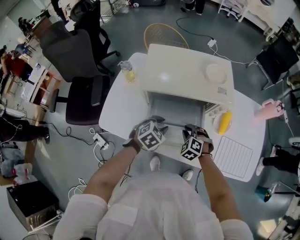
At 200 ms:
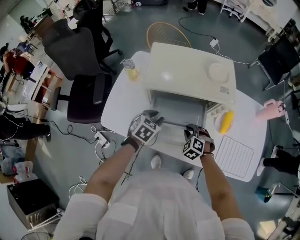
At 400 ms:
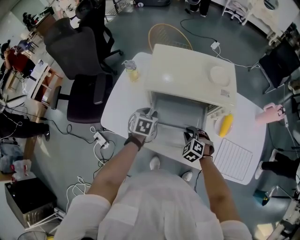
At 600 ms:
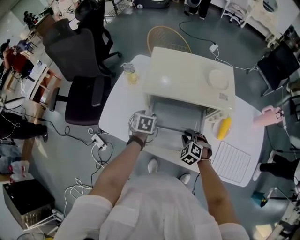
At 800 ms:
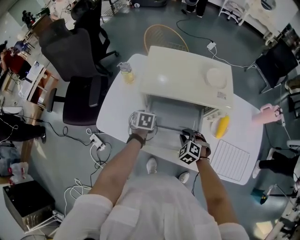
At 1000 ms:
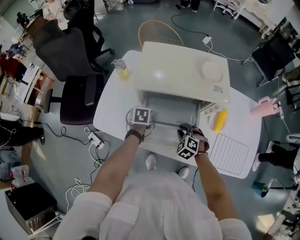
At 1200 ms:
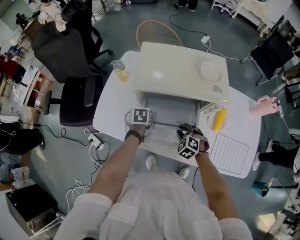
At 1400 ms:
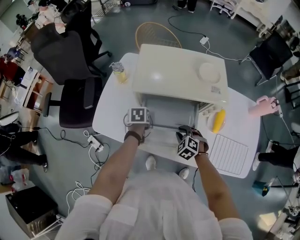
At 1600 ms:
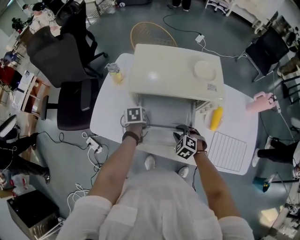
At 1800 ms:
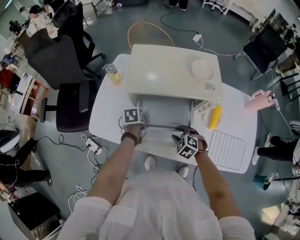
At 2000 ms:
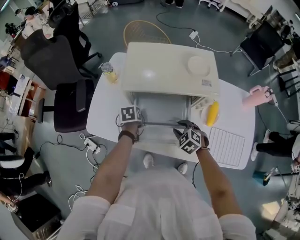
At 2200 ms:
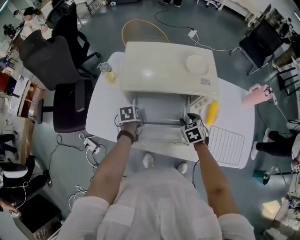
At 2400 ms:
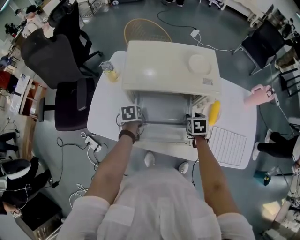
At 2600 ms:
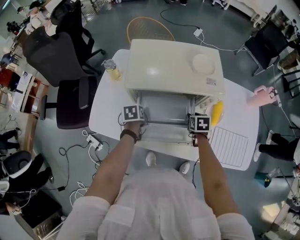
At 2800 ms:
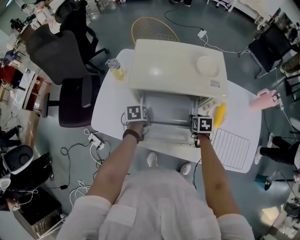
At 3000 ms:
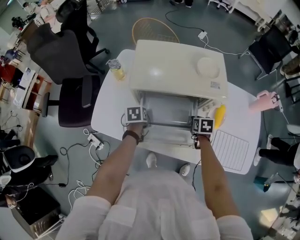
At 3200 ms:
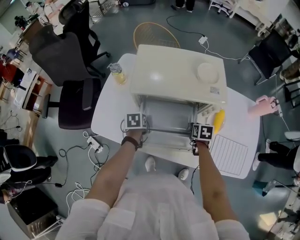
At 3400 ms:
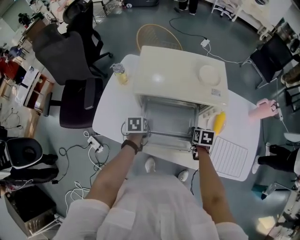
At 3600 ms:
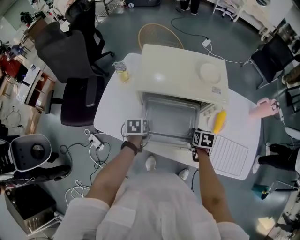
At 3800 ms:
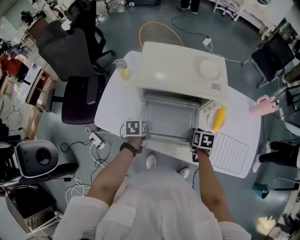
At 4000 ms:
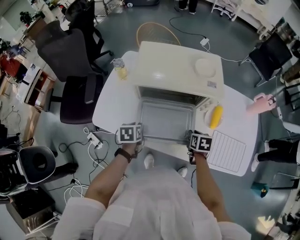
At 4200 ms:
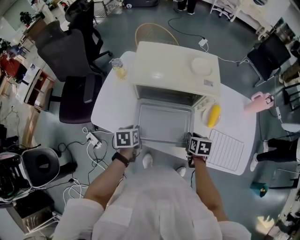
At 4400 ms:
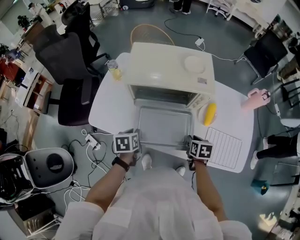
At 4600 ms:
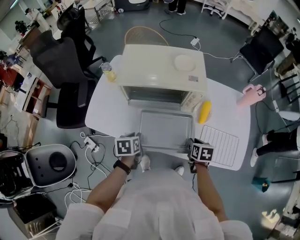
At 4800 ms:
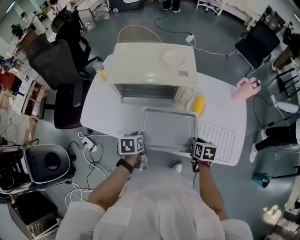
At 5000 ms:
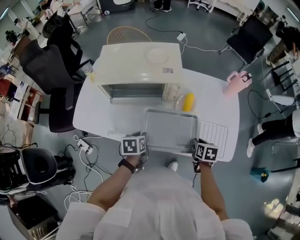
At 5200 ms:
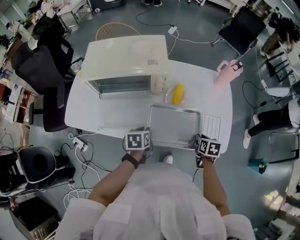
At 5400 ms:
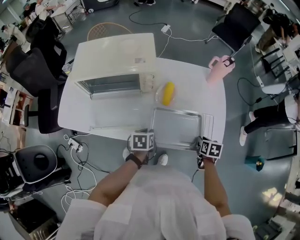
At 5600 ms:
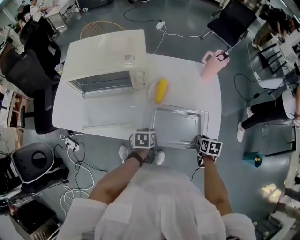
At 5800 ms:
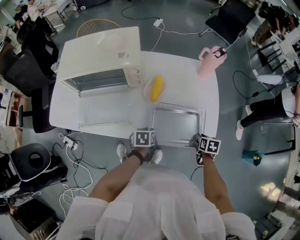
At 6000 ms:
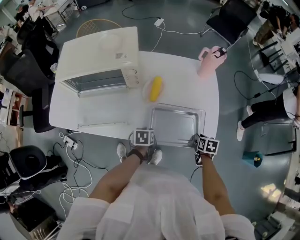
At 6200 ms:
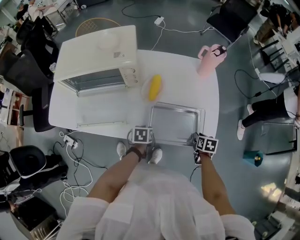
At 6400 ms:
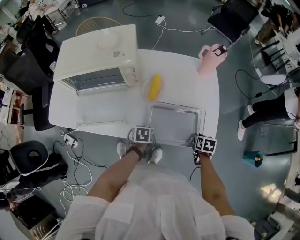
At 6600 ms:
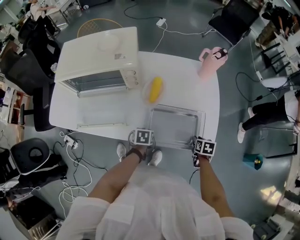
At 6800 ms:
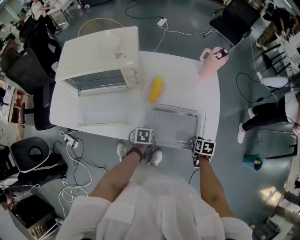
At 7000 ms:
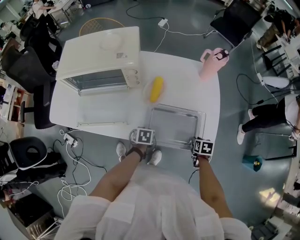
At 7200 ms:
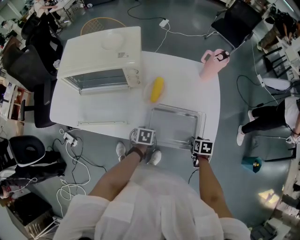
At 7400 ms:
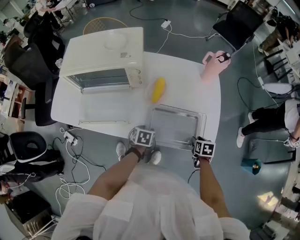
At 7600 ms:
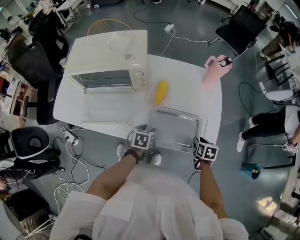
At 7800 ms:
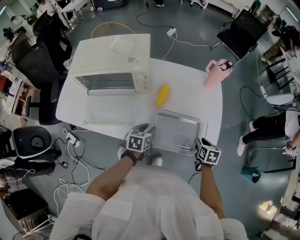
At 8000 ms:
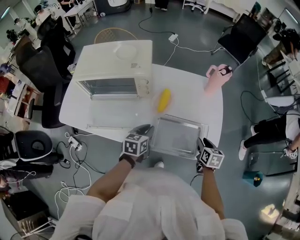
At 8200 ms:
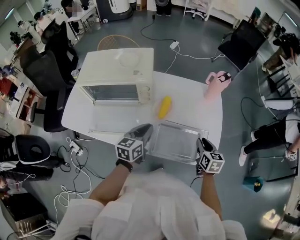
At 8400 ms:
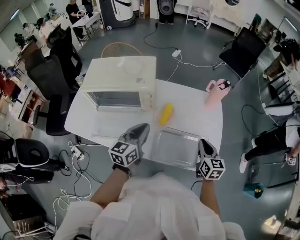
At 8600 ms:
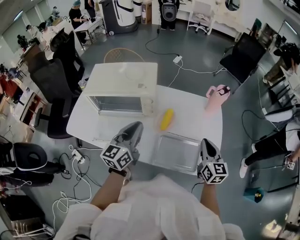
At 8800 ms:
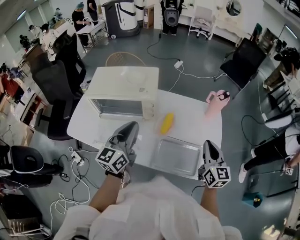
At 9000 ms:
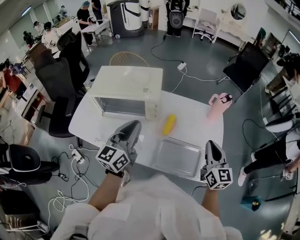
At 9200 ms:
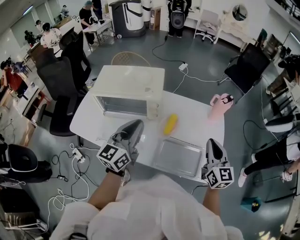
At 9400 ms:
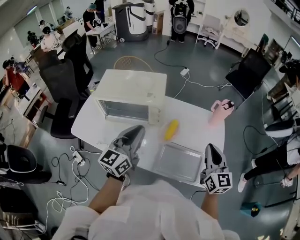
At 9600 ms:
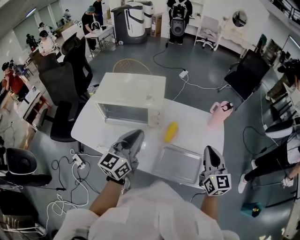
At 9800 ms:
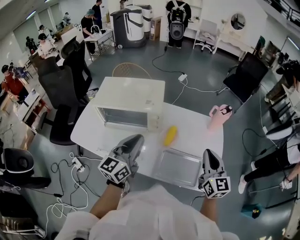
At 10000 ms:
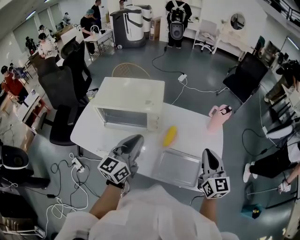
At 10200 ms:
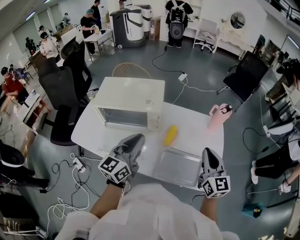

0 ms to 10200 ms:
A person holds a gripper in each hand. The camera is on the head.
0 ms to 1400 ms: The left gripper is displaced to the left, forward and downward by about 15 cm, and rotates around the line of its fingers by roughly 60 degrees, counterclockwise from behind.
1400 ms to 3000 ms: The right gripper moves to the right and forward, approximately 15 cm, and rotates around the line of its fingers by roughly 60 degrees, clockwise from behind.
3000 ms to 4400 ms: The right gripper moves backward, roughly 15 cm. Meanwhile the left gripper goes roughly 15 cm backward and upward.
4400 ms to 5800 ms: Both grippers move to the right, approximately 40 cm.
5800 ms to 7200 ms: The left gripper opens.
7200 ms to 8800 ms: Both grippers travel together upward, some 35 cm. The left gripper points its fingers approximately 70 degrees further upward, and closes its fingers; the right gripper angles its fingers upward, by approximately 60 degrees, and closes its fingers.
8800 ms to 10200 ms: The right gripper is displaced upward by some 5 cm.

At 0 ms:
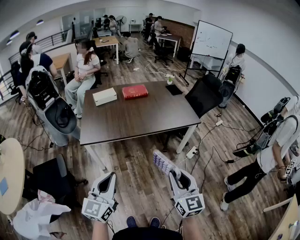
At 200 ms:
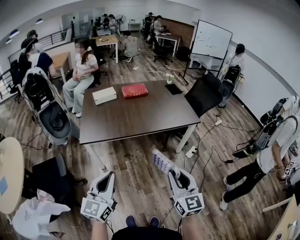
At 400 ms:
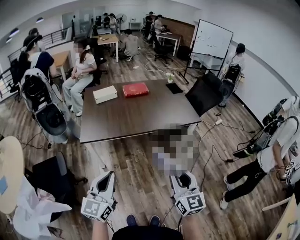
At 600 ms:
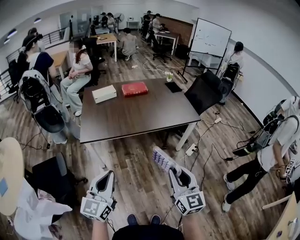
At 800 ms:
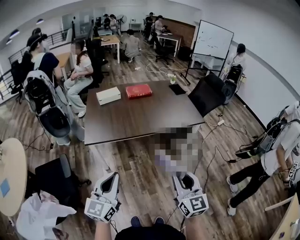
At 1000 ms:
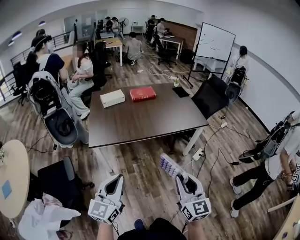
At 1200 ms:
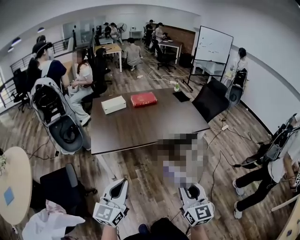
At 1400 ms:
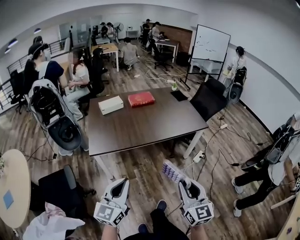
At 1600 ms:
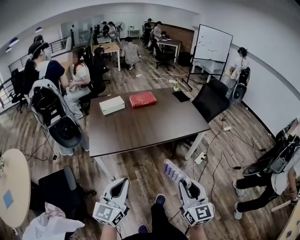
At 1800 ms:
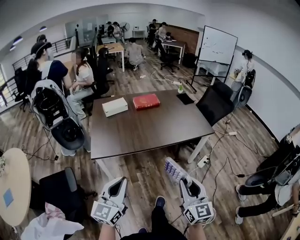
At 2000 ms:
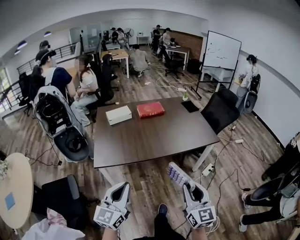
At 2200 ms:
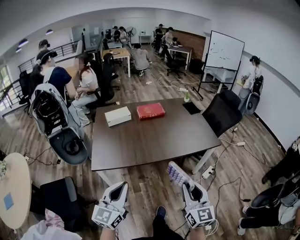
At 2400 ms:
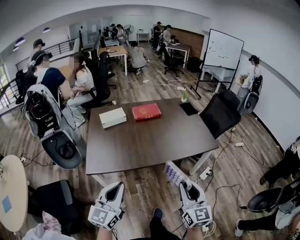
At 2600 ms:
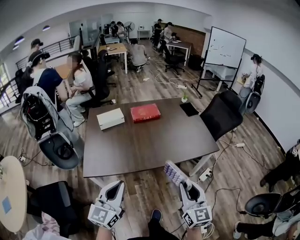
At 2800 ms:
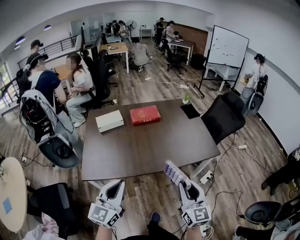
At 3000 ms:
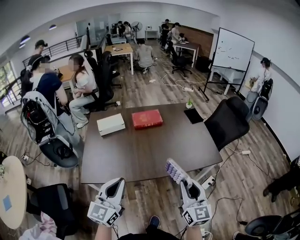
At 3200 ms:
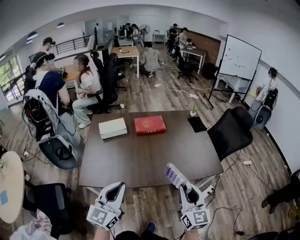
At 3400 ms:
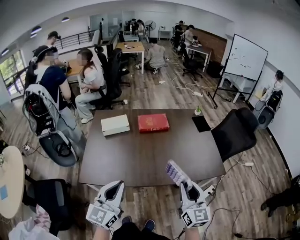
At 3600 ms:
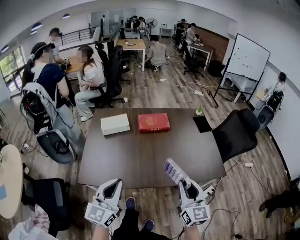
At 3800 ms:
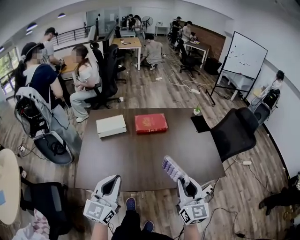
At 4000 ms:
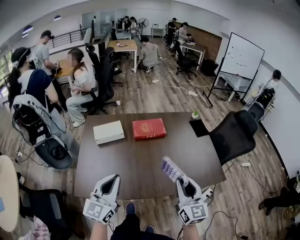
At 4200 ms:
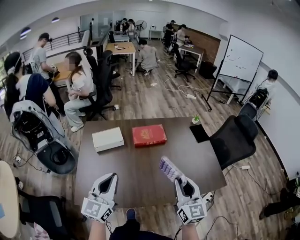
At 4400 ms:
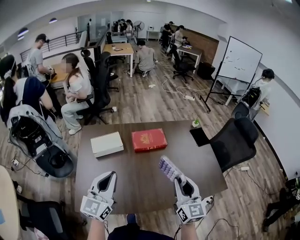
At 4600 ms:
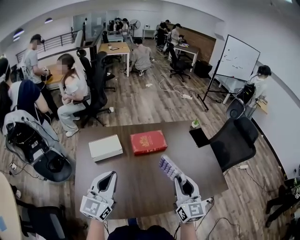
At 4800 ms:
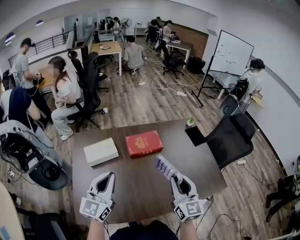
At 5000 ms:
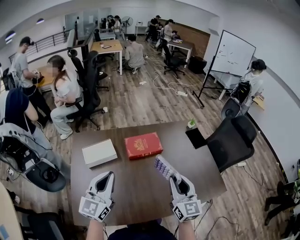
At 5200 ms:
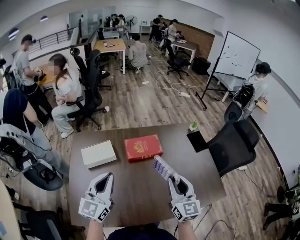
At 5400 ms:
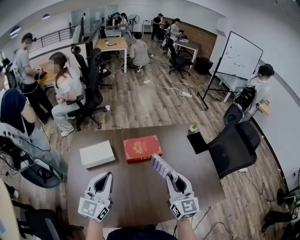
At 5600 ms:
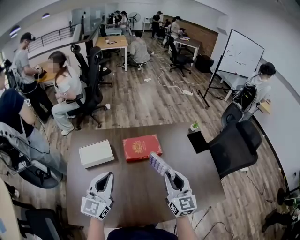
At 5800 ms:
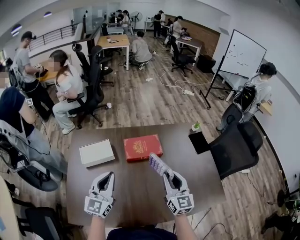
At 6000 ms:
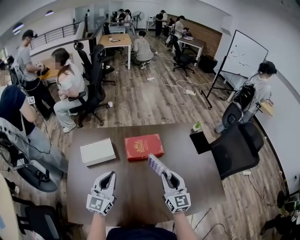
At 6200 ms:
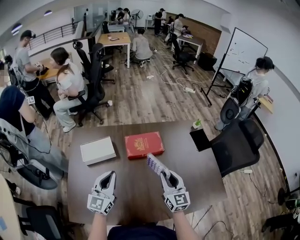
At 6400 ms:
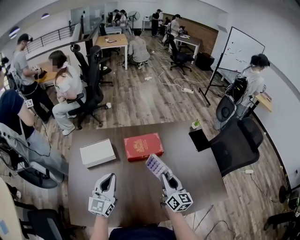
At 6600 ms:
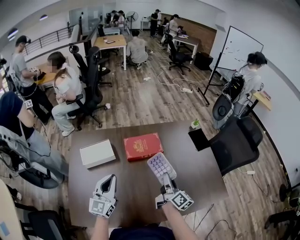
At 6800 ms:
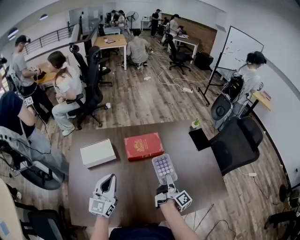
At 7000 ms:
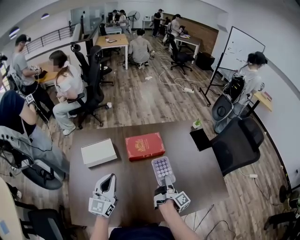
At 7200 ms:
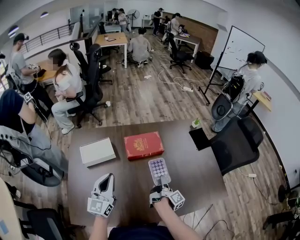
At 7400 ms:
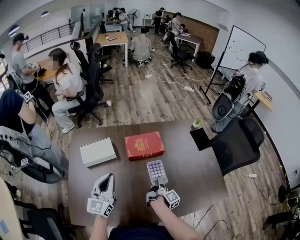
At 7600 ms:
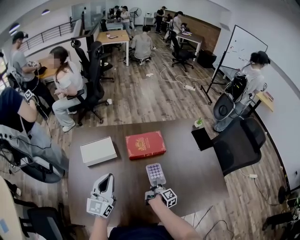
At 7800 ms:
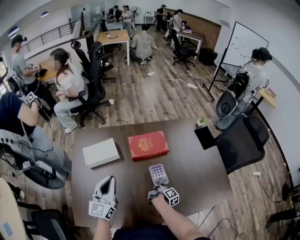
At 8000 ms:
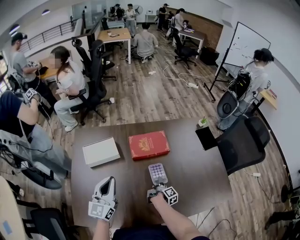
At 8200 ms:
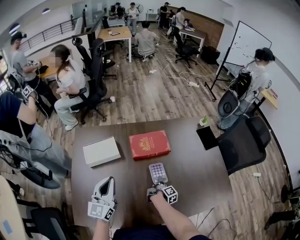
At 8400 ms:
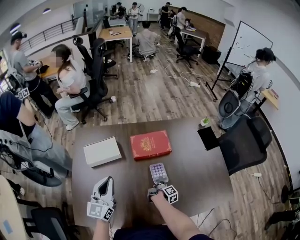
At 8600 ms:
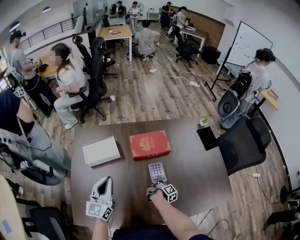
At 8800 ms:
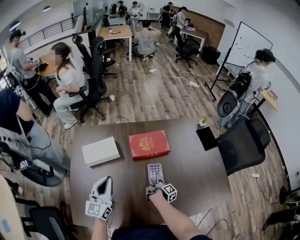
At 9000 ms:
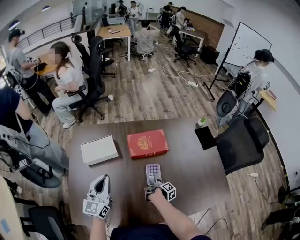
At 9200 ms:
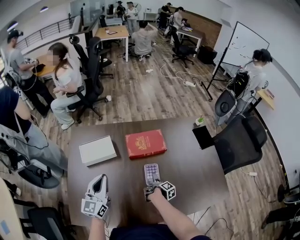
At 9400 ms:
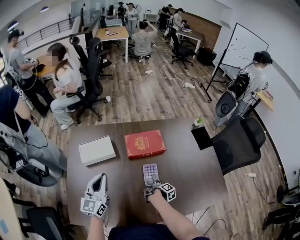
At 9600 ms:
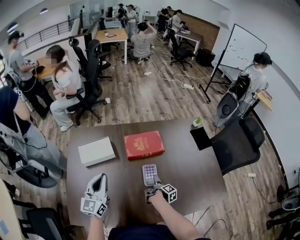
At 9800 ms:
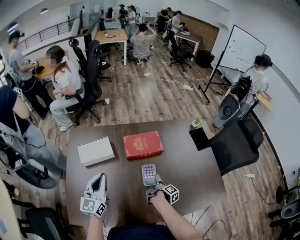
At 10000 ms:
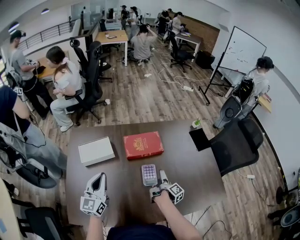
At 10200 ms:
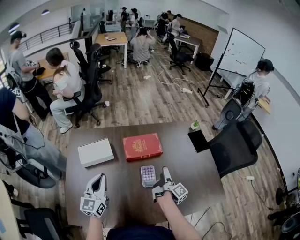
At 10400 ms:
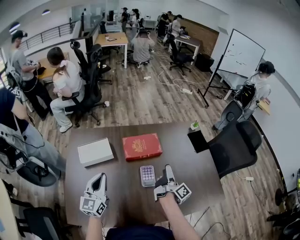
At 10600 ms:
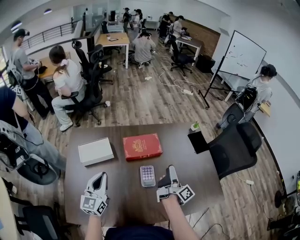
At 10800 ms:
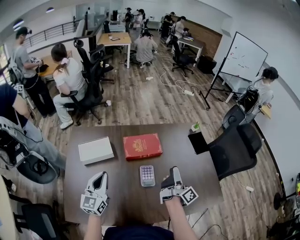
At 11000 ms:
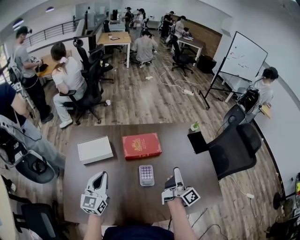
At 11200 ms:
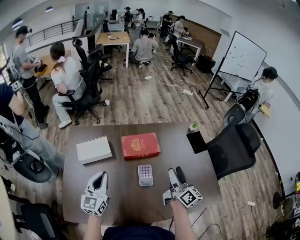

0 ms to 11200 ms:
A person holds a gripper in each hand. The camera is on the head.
0 ms to 1600 ms: The left gripper is displaced to the left and forward by about 5 cm, while the right gripper goes approximately 5 cm to the left.
1600 ms to 3200 ms: The two grippers go about 35 cm forward.
3200 ms to 4800 ms: Both grippers move forward, about 30 cm.
4800 ms to 6400 ms: Both grippers travel together downward and forward, about 15 cm. The right gripper swivels approximately 30 degrees.
6400 ms to 8000 ms: The right gripper moves downward, approximately 25 cm, and twists approximately 60 degrees clockwise, seen from behind.
8000 ms to 9600 ms: The right gripper opens.
9600 ms to 11200 ms: The right gripper moves upward, approximately 30 cm, and angles its fingers upward, by some 40 degrees.

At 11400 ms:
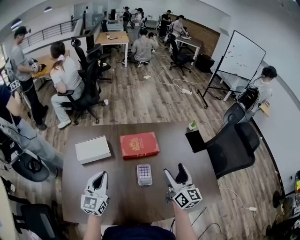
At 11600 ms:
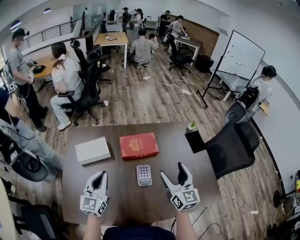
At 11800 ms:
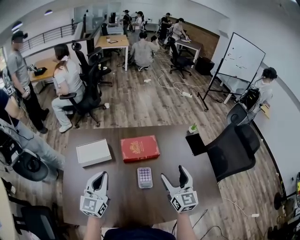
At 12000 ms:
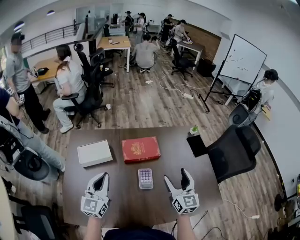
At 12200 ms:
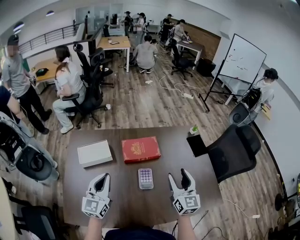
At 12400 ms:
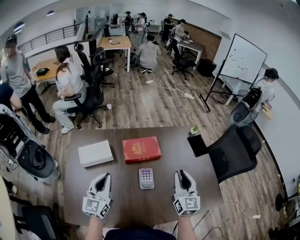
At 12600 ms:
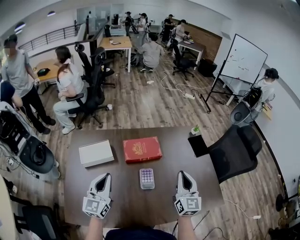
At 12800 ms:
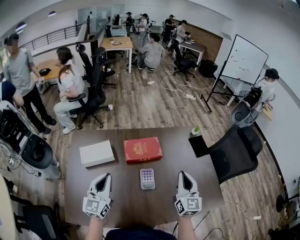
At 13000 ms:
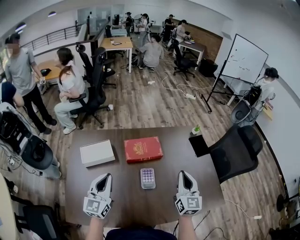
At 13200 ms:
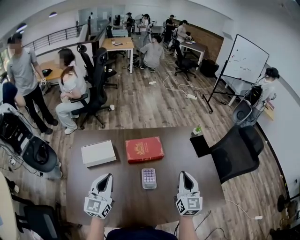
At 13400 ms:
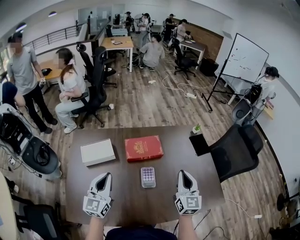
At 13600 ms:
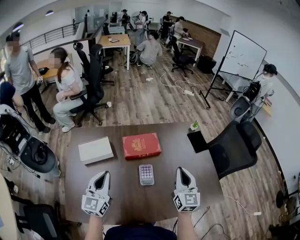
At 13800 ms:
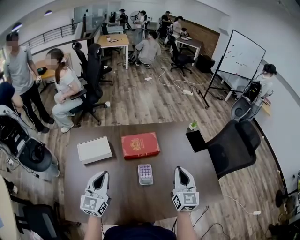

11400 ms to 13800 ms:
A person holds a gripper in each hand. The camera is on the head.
11400 ms to 12600 ms: The right gripper rotates roughly 20 degrees, and closes up.
12600 ms to 13800 ms: The two grippers keep their place.
